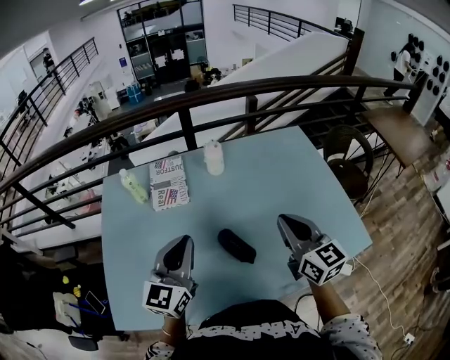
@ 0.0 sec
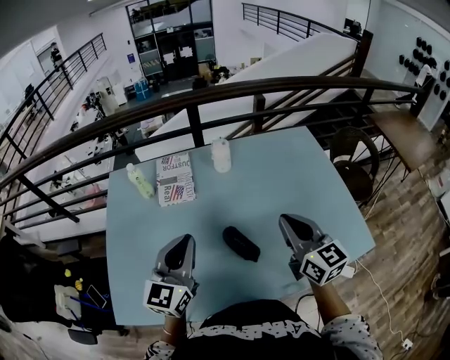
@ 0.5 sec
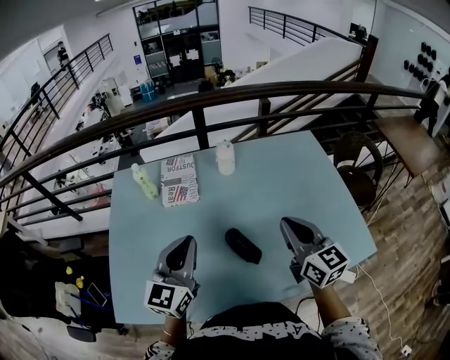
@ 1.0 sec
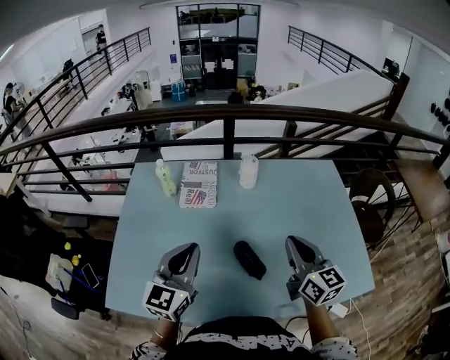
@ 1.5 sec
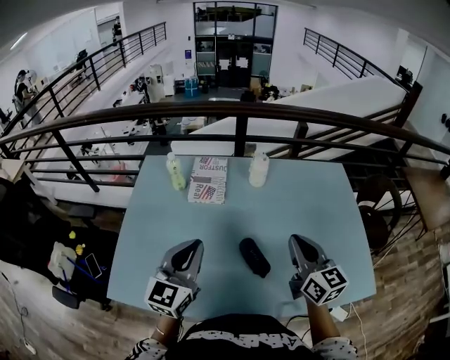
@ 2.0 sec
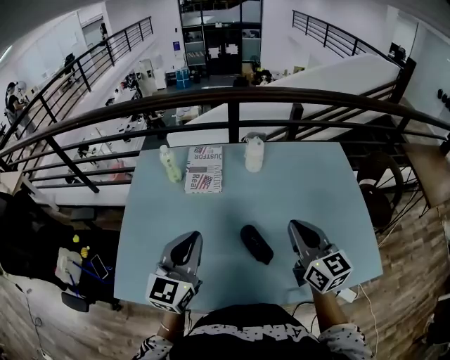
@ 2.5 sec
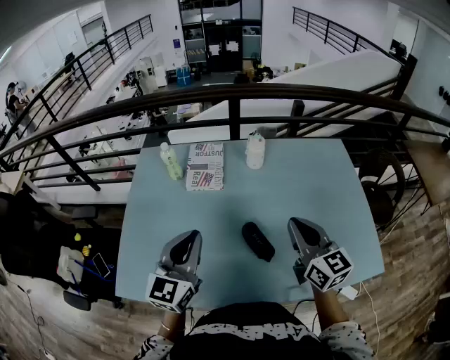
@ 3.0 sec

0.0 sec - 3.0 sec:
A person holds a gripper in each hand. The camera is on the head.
0.0 sec - 1.5 sec: The grippers stay close to where they were, moving slightly.
1.5 sec - 3.0 sec: The grippers move only a little.

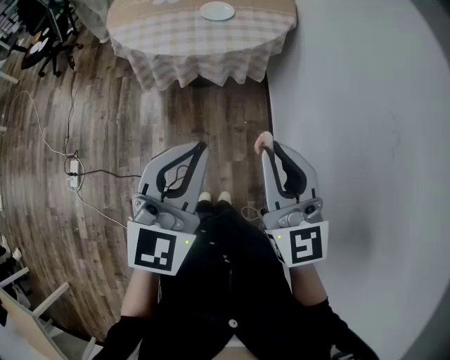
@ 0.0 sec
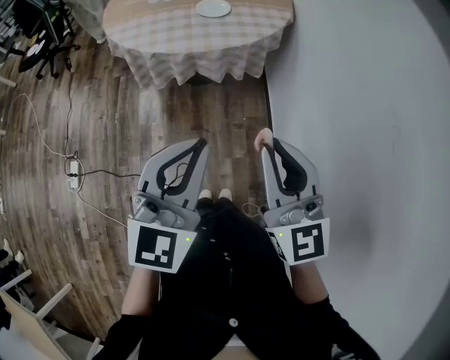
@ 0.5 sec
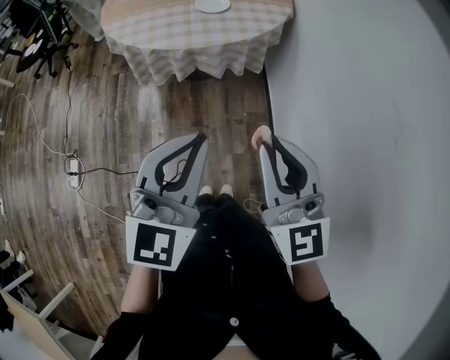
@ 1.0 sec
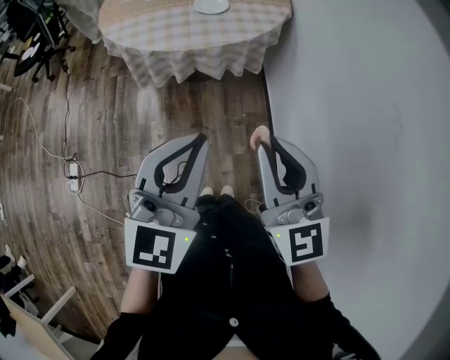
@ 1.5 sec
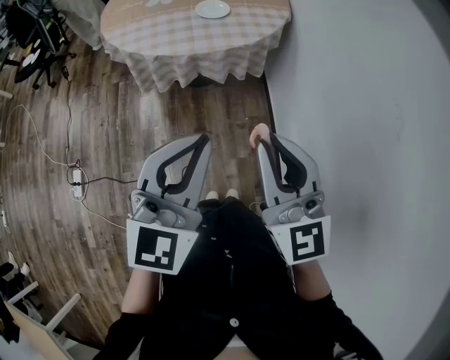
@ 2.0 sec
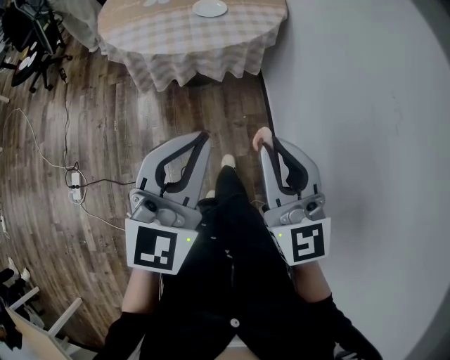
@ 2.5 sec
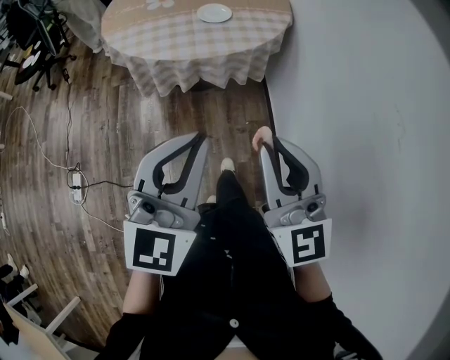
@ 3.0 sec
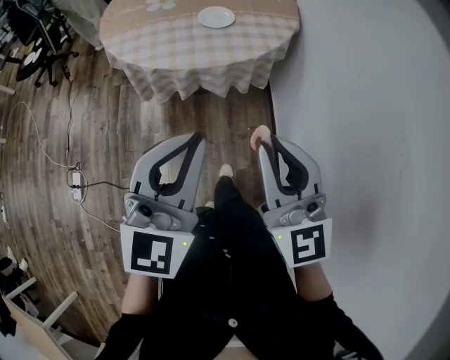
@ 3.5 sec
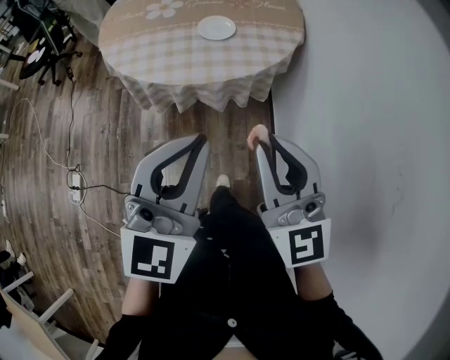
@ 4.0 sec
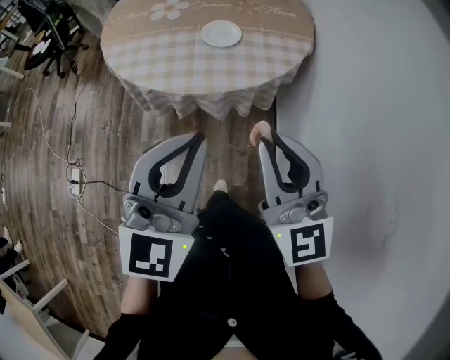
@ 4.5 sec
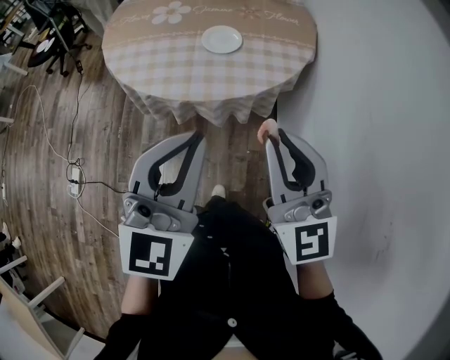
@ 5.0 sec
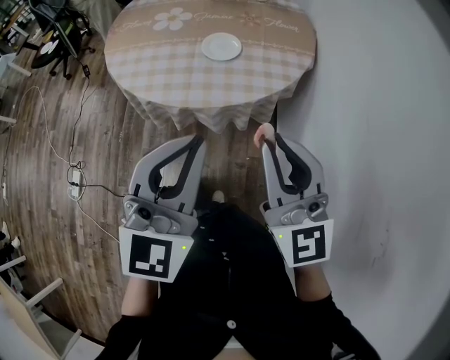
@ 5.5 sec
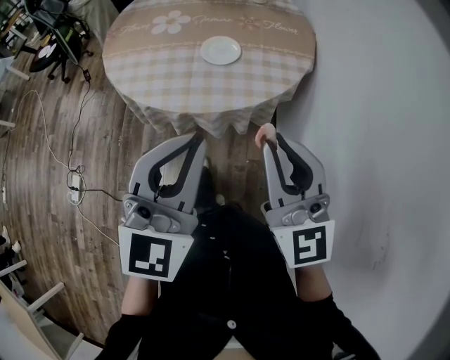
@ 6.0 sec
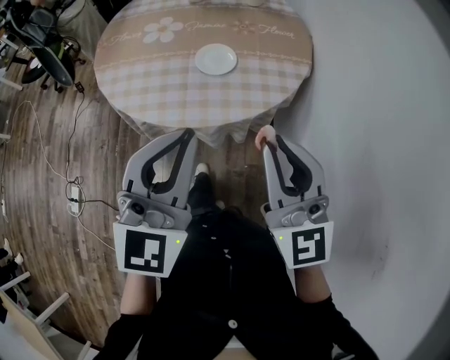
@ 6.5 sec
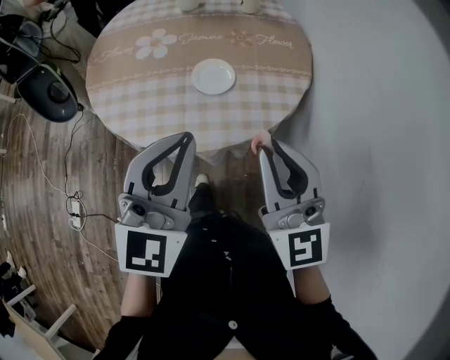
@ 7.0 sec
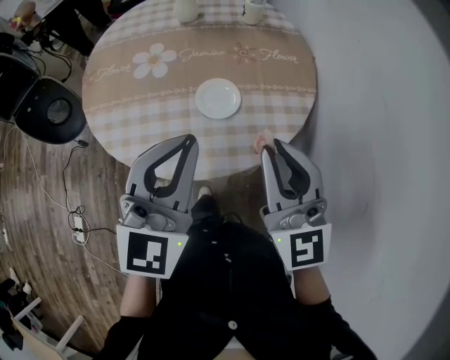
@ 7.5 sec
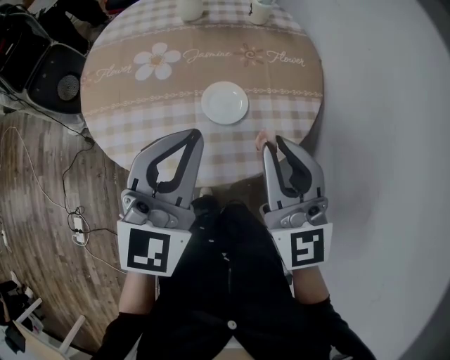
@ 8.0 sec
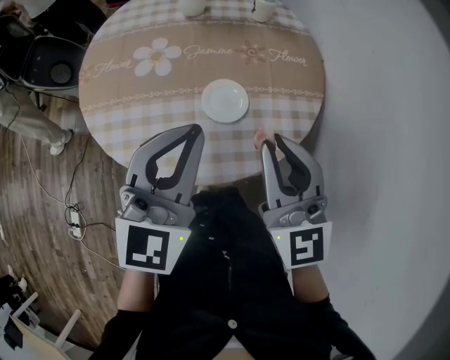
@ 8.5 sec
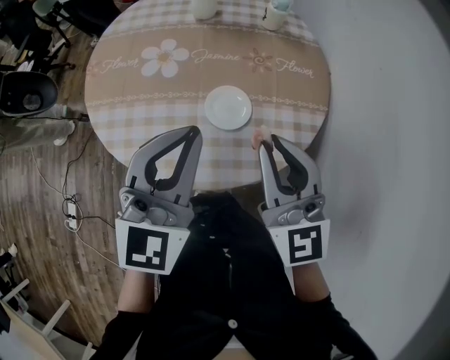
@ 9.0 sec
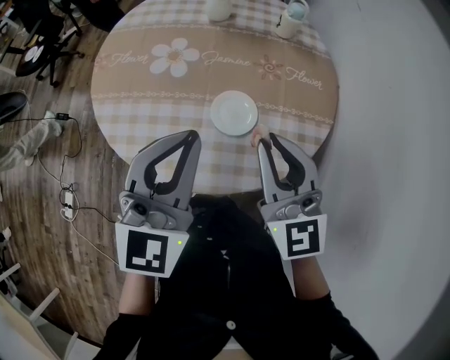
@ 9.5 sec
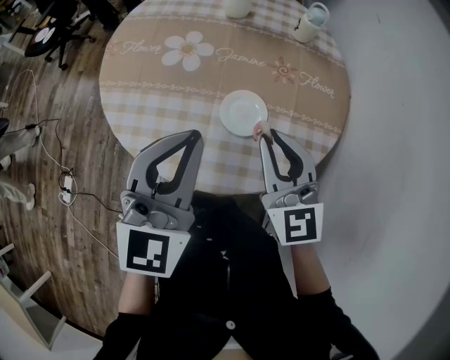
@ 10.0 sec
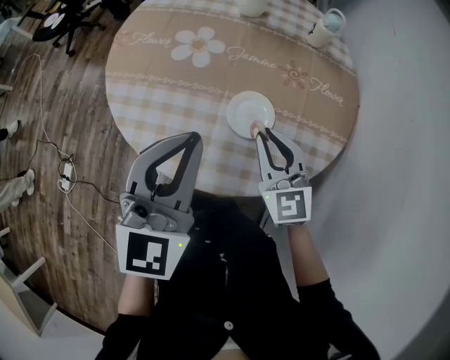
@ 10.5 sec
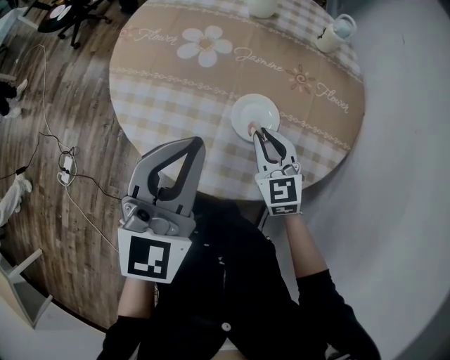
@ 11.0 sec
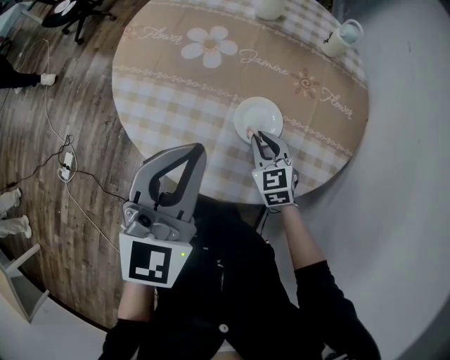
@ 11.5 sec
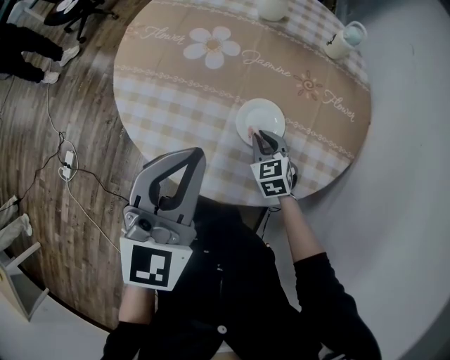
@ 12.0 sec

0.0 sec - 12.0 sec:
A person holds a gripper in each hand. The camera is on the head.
0.0 sec - 2.0 sec: The grippers make only small movements.
2.0 sec - 4.0 sec: Both grippers move forward, approximately 15 cm.
4.0 sec - 6.0 sec: Both grippers travel together forward, roughly 10 cm.
6.0 sec - 8.0 sec: The two grippers go some 25 cm forward.
8.0 sec - 10.0 sec: The right gripper moves forward and downward, roughly 10 cm.
10.0 sec - 12.0 sec: The right gripper heads downward, covering approximately 25 cm, and points its fingers approximately 30 degrees further downward.

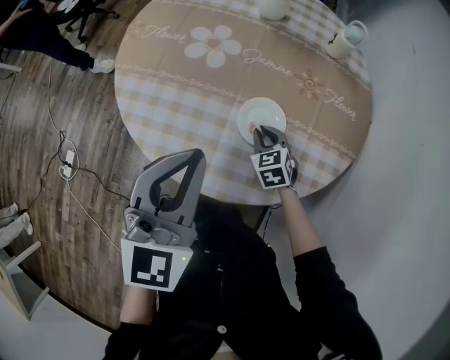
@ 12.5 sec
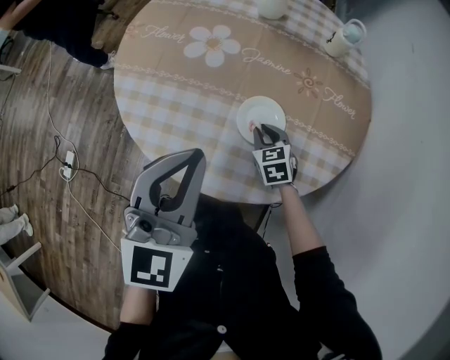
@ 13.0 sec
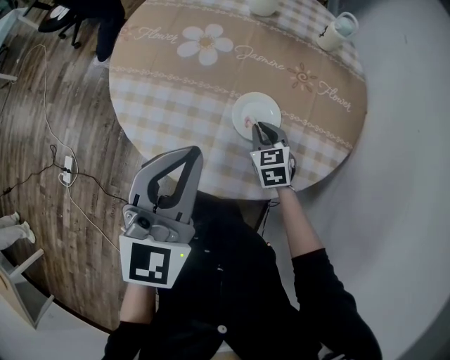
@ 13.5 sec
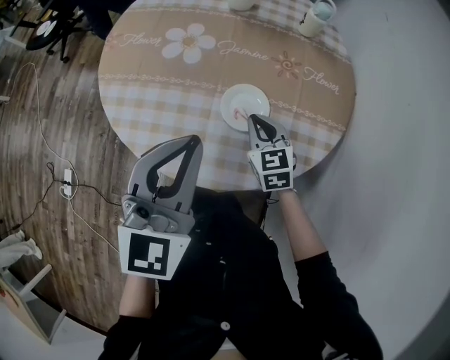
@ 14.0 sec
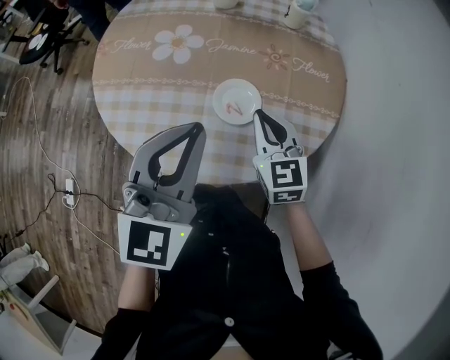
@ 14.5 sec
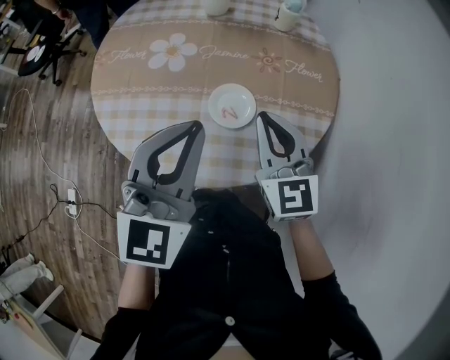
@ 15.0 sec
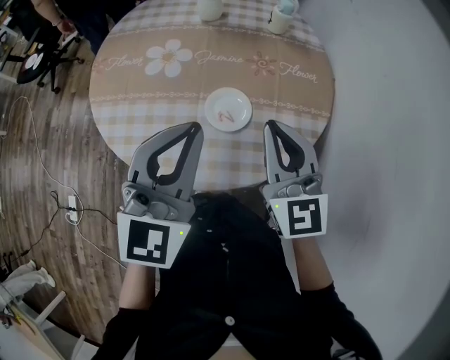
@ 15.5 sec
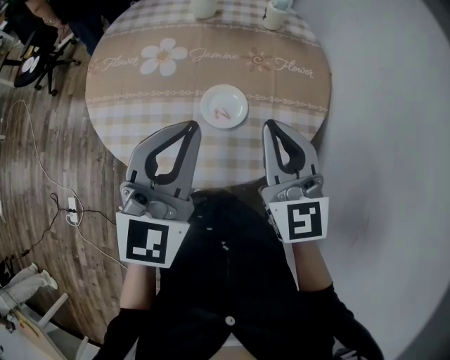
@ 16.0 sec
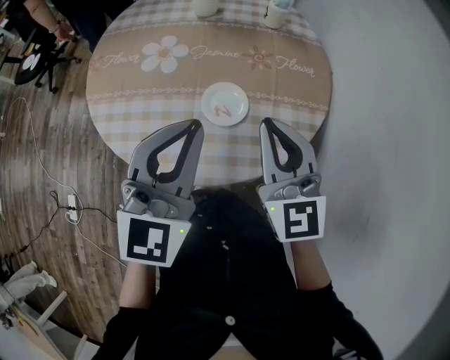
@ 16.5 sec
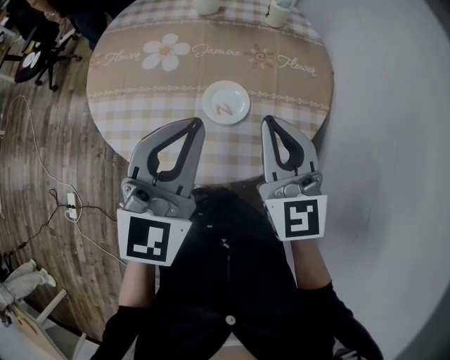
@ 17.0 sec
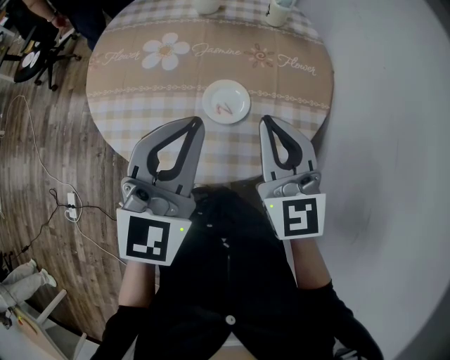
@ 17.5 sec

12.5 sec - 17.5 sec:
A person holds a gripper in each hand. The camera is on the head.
12.5 sec - 15.0 sec: The left gripper moves to the right, about 5 cm; the right gripper goes roughly 25 cm upward, and tips its fingers upward by some 40 degrees.
15.0 sec - 17.5 sec: The right gripper changes place by roughly 5 cm.

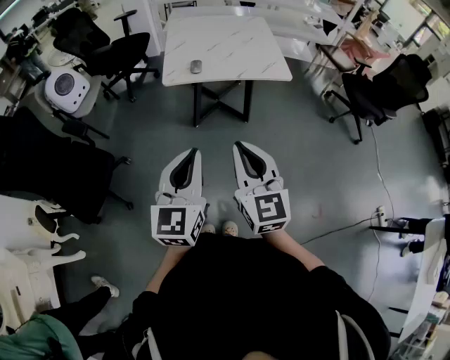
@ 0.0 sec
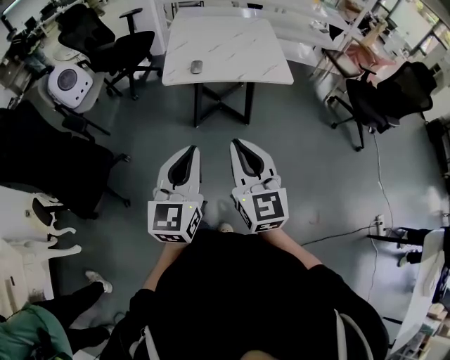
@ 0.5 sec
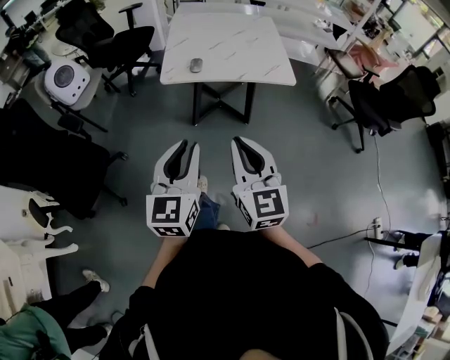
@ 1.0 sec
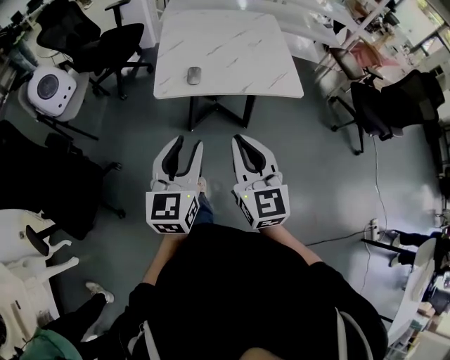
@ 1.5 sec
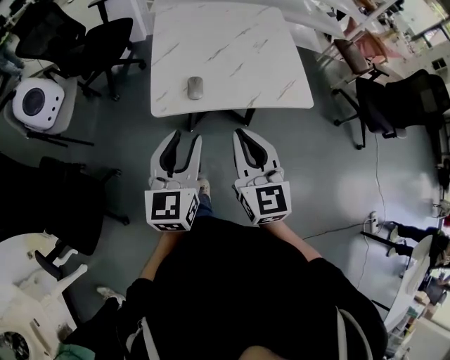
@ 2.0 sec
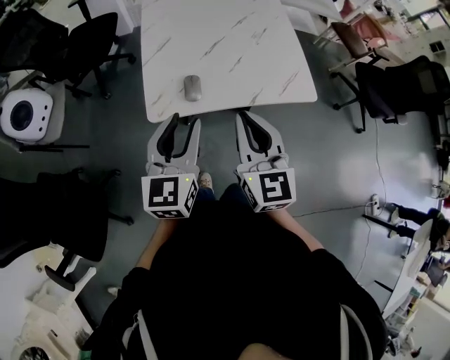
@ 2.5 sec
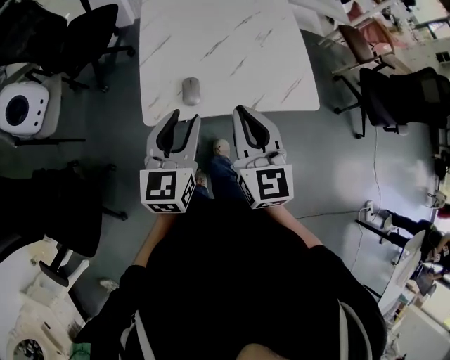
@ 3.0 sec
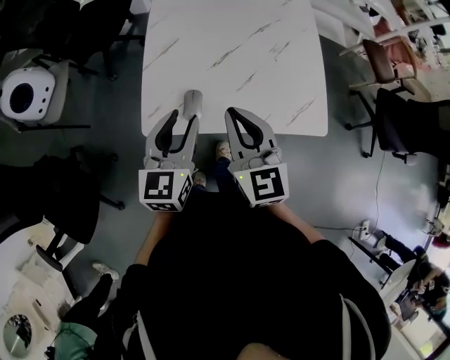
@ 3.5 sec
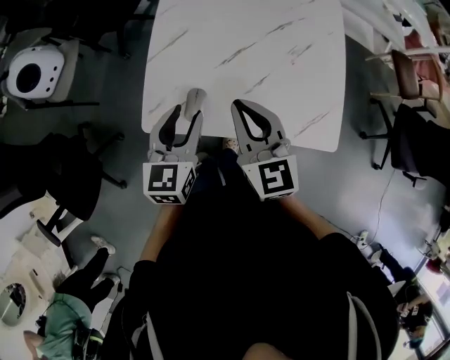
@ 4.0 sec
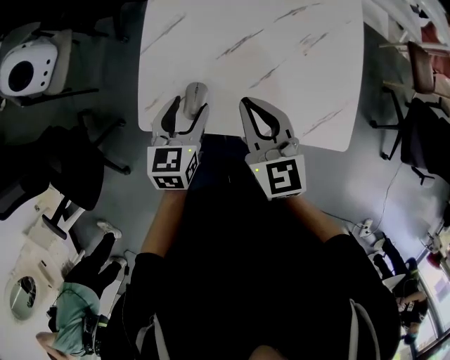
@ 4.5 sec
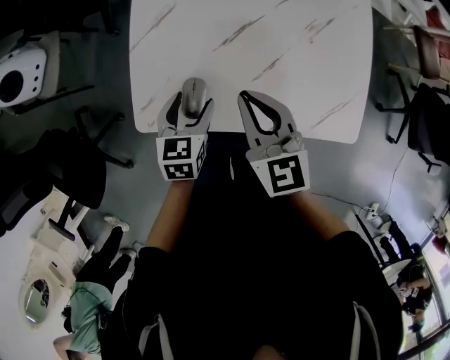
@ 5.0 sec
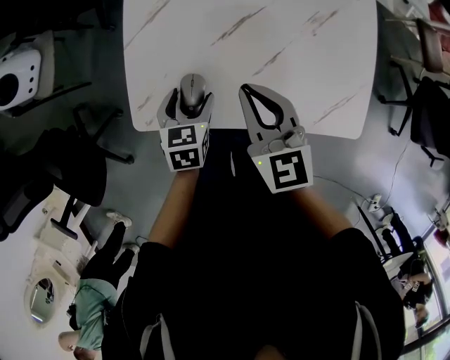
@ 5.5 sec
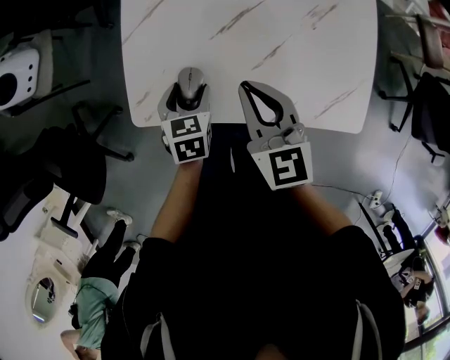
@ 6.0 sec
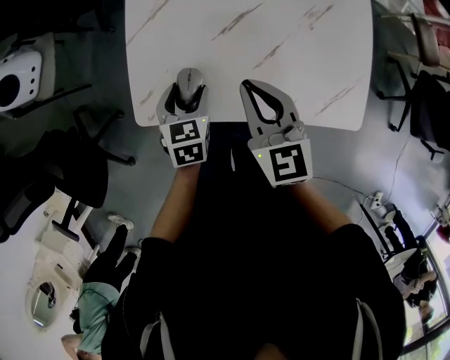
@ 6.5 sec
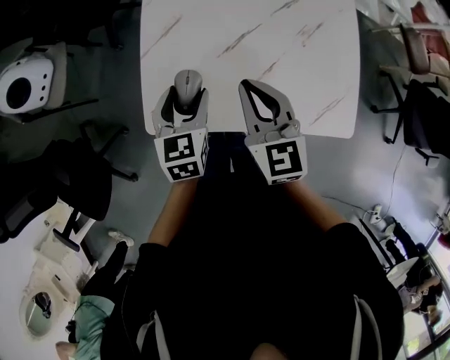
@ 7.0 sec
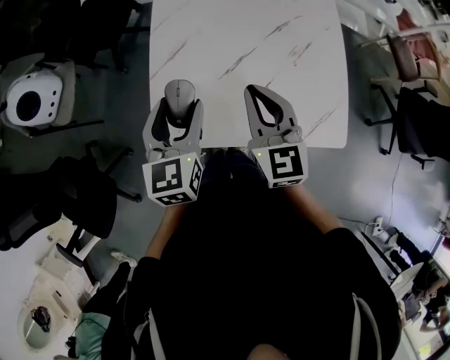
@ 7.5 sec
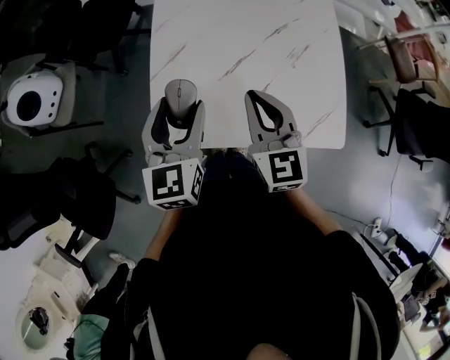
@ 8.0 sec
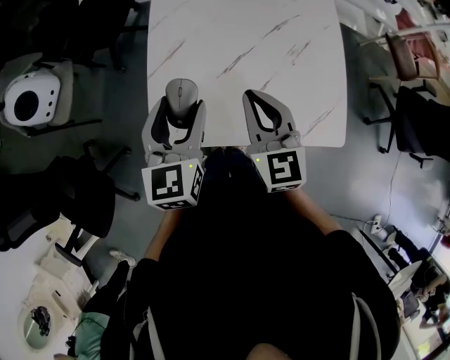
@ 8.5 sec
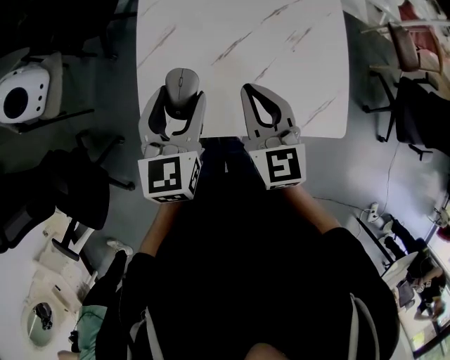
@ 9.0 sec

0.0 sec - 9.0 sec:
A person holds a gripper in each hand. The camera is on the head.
0.0 sec - 2.0 sec: The grippers both shift forward by roughly 35 cm. The left gripper opens.
2.0 sec - 4.5 sec: The two grippers go roughly 30 cm forward and downward. The right gripper changes its angle by roughly 20 degrees. The left gripper rotates roughly 30 degrees.
4.5 sec - 7.0 sec: The left gripper reaches some 10 cm downward, then returns.
7.0 sec - 9.0 sec: The left gripper goes some 10 cm upward.
